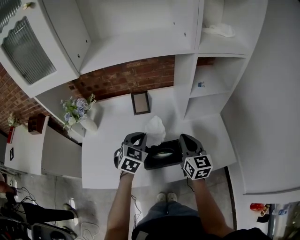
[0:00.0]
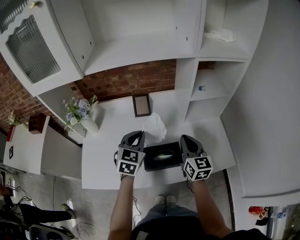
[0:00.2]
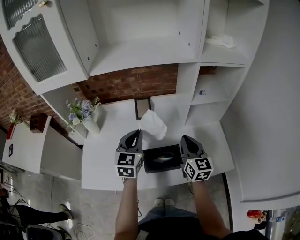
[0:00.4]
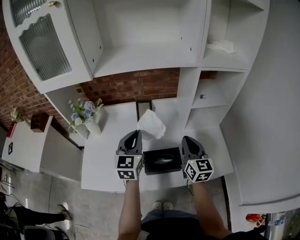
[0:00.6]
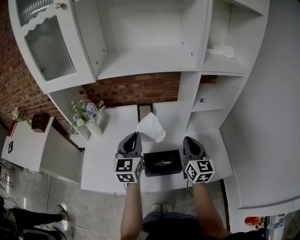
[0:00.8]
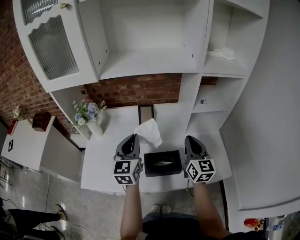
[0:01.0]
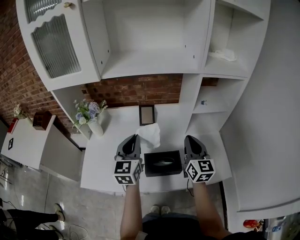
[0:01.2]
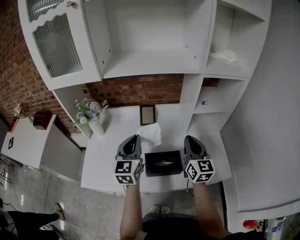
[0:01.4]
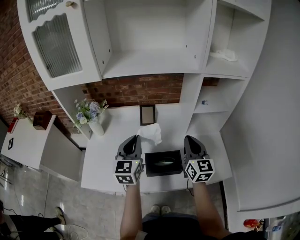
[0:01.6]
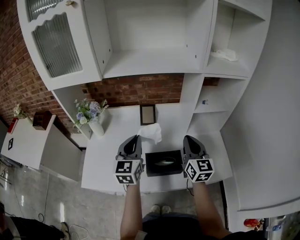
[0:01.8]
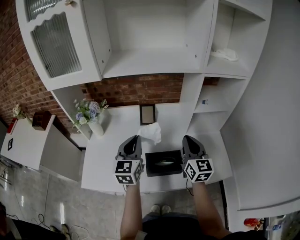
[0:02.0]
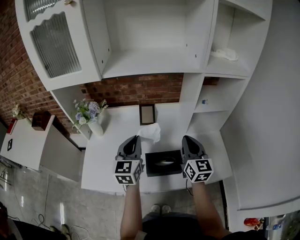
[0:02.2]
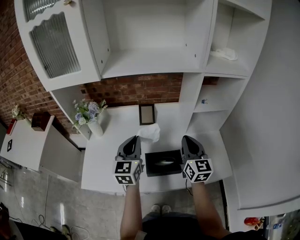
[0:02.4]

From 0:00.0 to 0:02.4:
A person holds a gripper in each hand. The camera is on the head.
From 0:00.0 to 0:01.2: The left gripper shifts some 10 cm upward and to the left, and tilts its fingers roughly 30 degrees upward, while the right gripper travels upward by some 10 cm.
From 0:01.2 to 0:02.4: The grippers stay close to where they were, moving slightly.

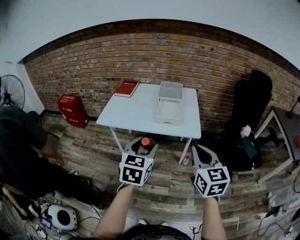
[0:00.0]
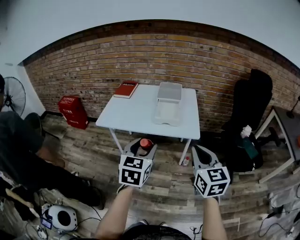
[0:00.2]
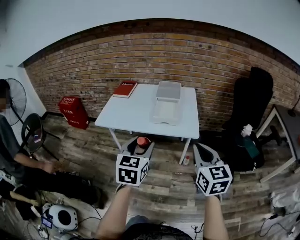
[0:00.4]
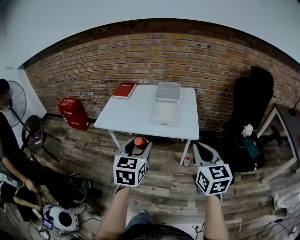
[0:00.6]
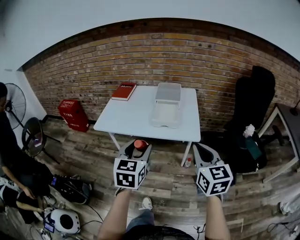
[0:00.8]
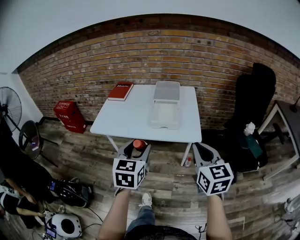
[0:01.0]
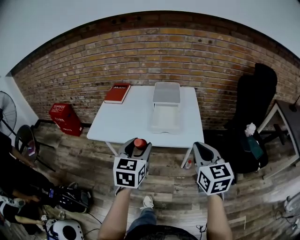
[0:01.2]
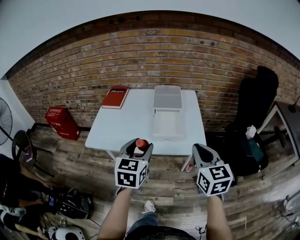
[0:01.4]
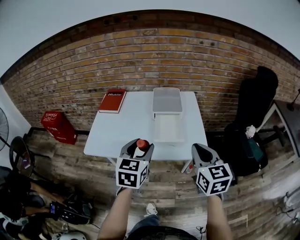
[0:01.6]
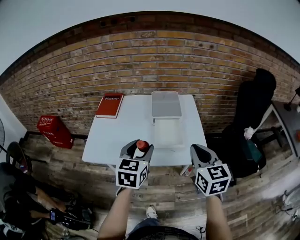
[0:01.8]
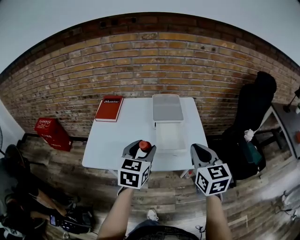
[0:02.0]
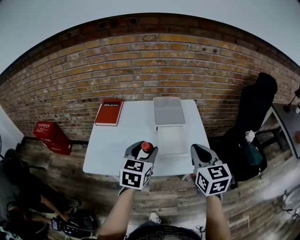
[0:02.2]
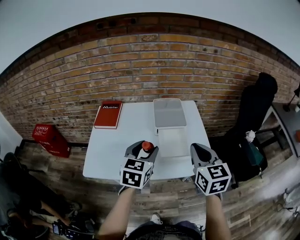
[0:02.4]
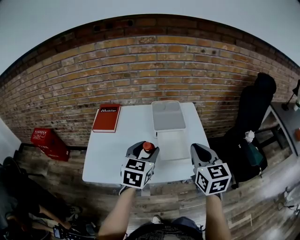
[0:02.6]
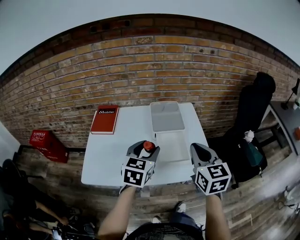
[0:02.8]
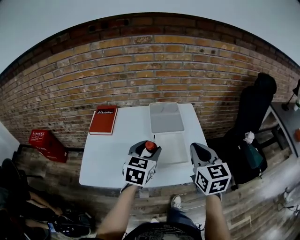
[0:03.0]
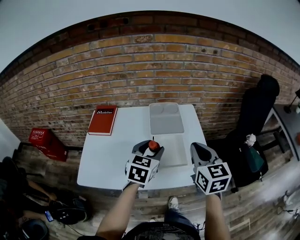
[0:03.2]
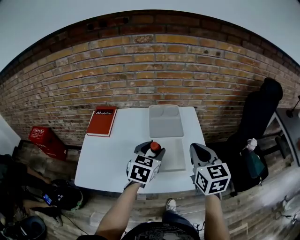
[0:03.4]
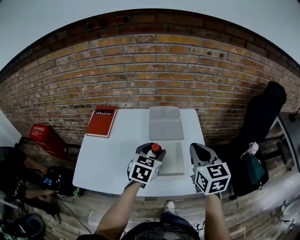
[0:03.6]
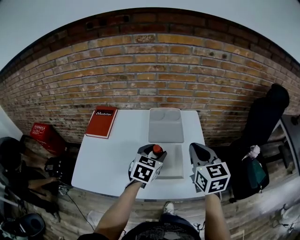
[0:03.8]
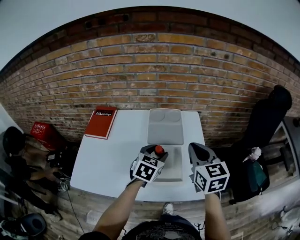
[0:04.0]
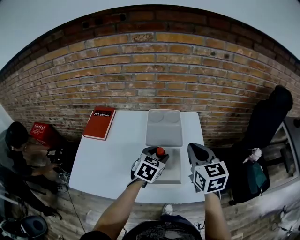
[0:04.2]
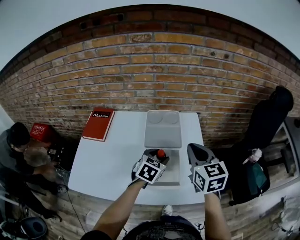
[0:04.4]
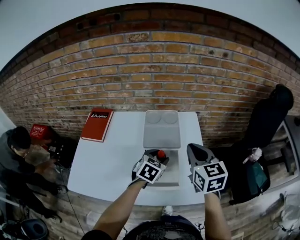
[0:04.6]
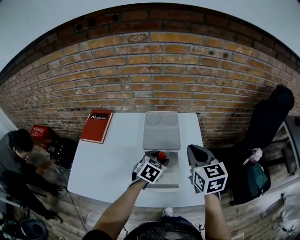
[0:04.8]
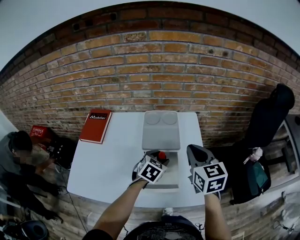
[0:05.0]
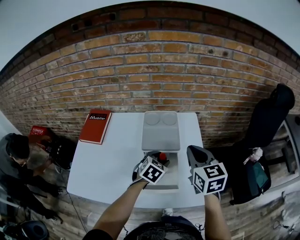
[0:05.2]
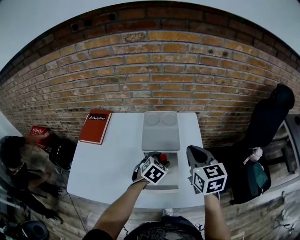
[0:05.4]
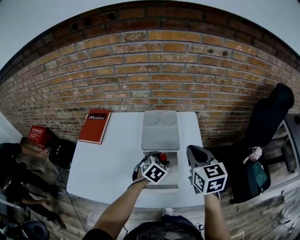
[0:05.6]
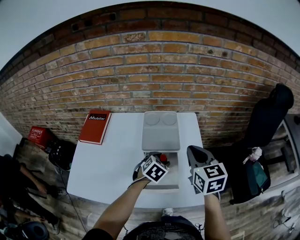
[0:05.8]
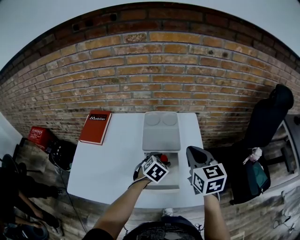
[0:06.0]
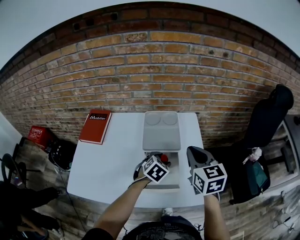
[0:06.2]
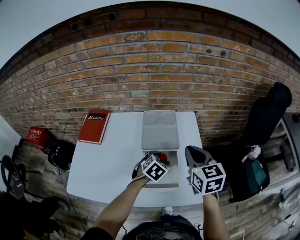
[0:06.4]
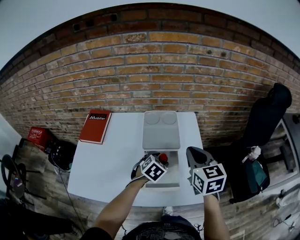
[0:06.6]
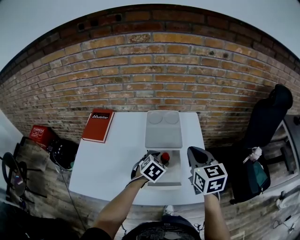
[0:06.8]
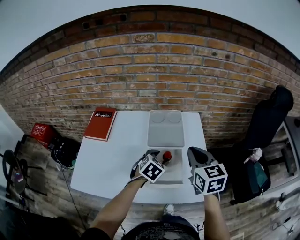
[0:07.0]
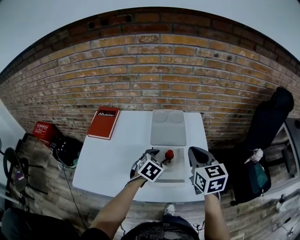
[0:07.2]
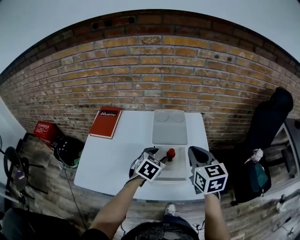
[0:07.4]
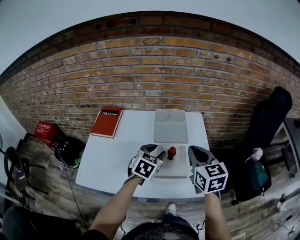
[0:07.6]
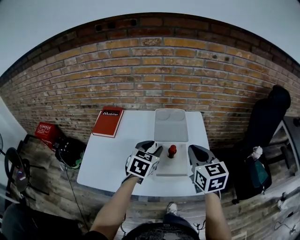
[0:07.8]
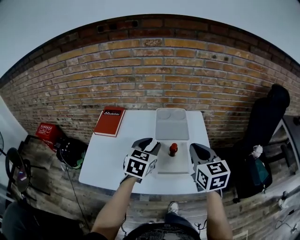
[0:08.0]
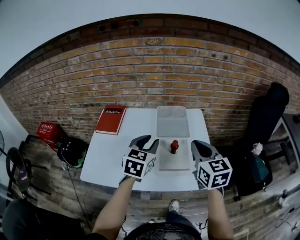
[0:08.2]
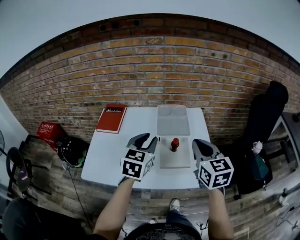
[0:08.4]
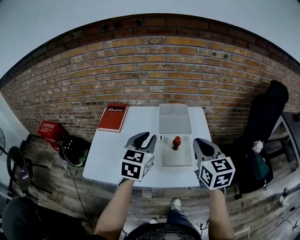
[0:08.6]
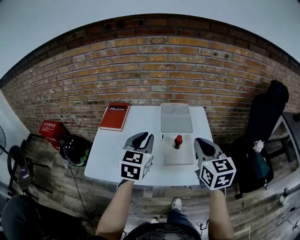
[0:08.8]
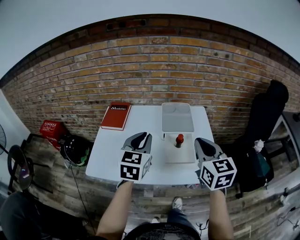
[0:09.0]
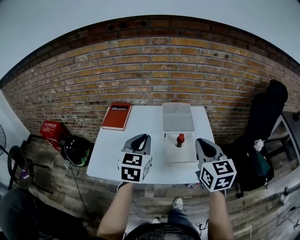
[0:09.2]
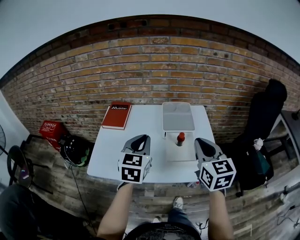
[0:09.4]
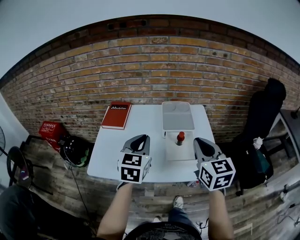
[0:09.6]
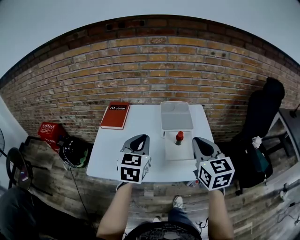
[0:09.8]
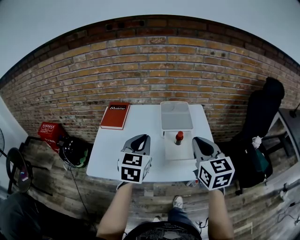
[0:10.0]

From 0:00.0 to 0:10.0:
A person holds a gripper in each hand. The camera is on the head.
From 0:00.0 to 0:01.4: Both grippers move forward, about 15 cm.
From 0:01.4 to 0:02.8: The right gripper goes approximately 15 cm forward and to the left. Meanwhile the left gripper is displaced forward by about 20 cm.
From 0:02.8 to 0:04.2: The right gripper goes some 15 cm forward, while the left gripper travels forward, downward and to the right by about 20 cm.
From 0:04.2 to 0:05.8: The left gripper shifts about 5 cm downward.
From 0:05.8 to 0:07.2: The left gripper changes place by approximately 5 cm.
From 0:07.2 to 0:08.6: The right gripper is displaced backward and upward by approximately 10 cm. Meanwhile the left gripper heads upward and to the left, covering some 20 cm, changes its angle by some 30 degrees, and closes its fingers.
From 0:08.6 to 0:10.0: The left gripper shifts by about 5 cm; the right gripper changes place by approximately 5 cm.

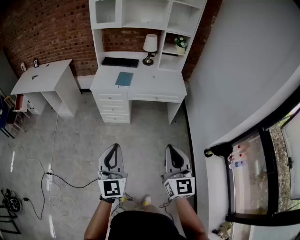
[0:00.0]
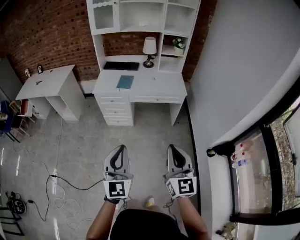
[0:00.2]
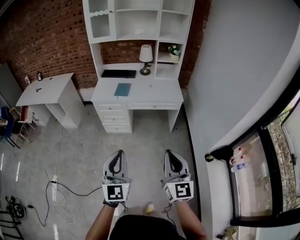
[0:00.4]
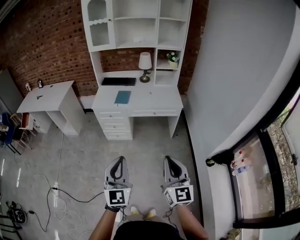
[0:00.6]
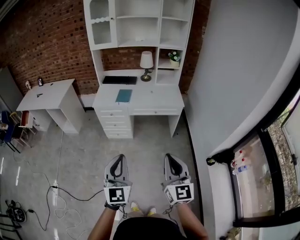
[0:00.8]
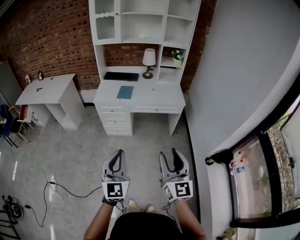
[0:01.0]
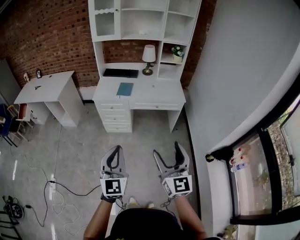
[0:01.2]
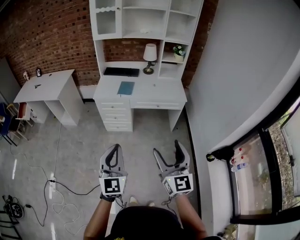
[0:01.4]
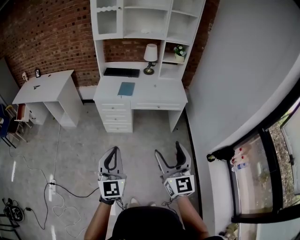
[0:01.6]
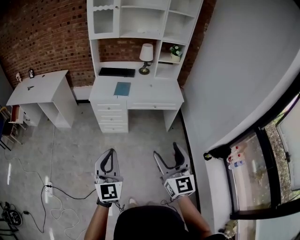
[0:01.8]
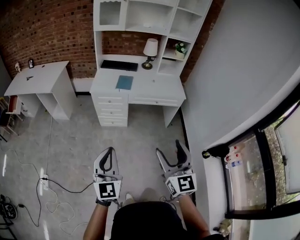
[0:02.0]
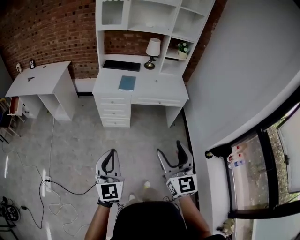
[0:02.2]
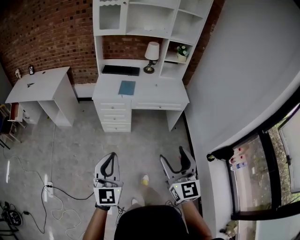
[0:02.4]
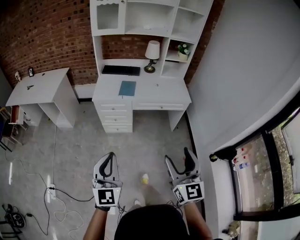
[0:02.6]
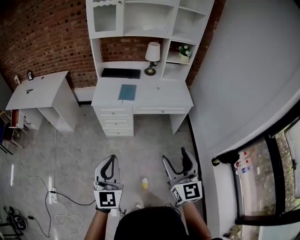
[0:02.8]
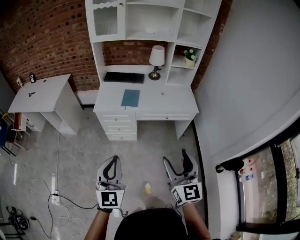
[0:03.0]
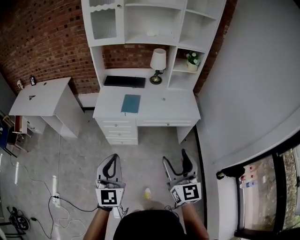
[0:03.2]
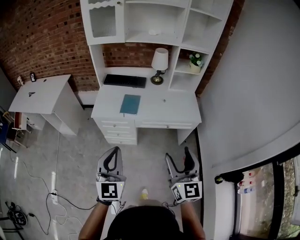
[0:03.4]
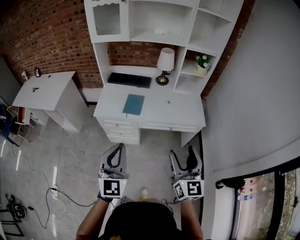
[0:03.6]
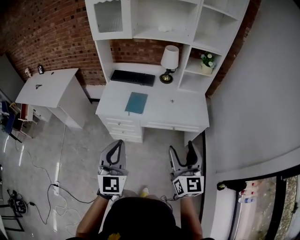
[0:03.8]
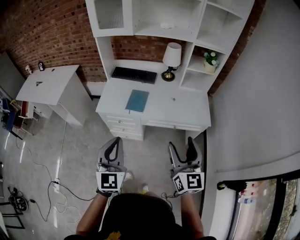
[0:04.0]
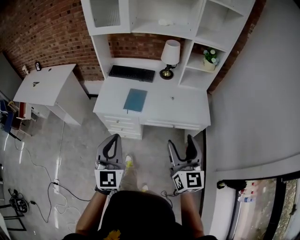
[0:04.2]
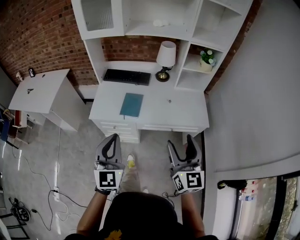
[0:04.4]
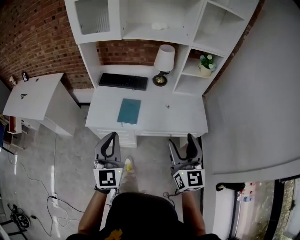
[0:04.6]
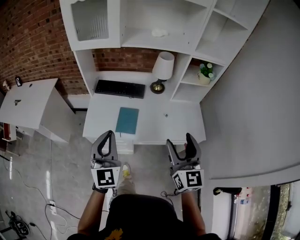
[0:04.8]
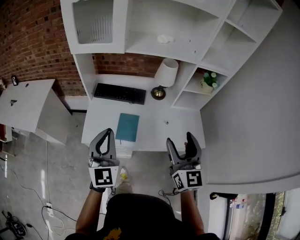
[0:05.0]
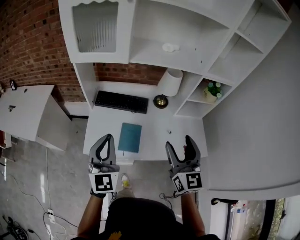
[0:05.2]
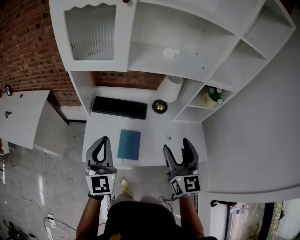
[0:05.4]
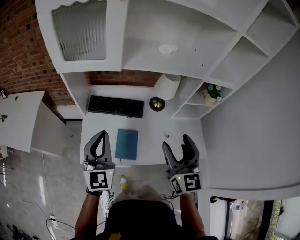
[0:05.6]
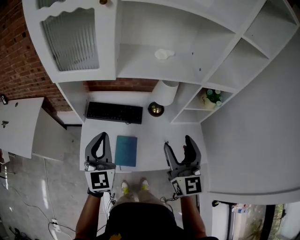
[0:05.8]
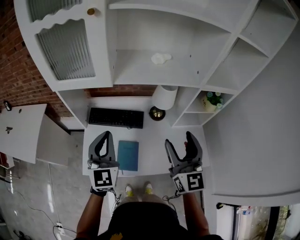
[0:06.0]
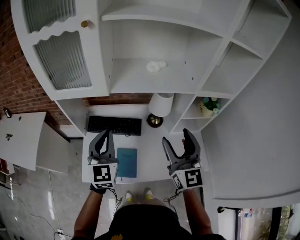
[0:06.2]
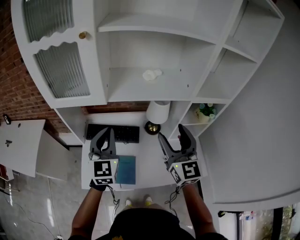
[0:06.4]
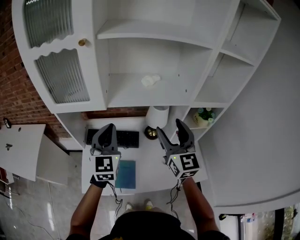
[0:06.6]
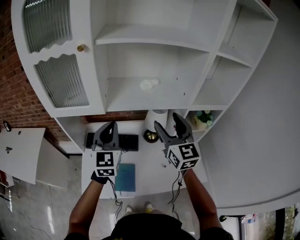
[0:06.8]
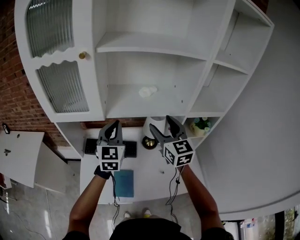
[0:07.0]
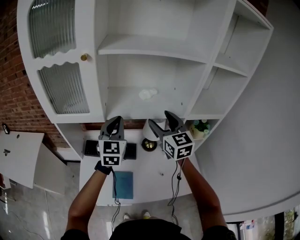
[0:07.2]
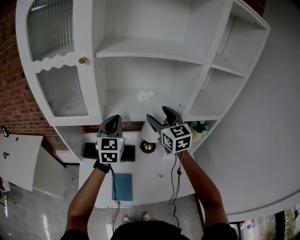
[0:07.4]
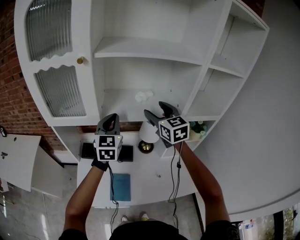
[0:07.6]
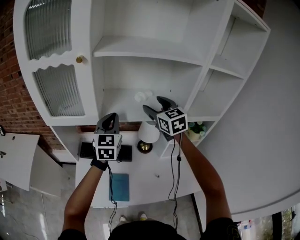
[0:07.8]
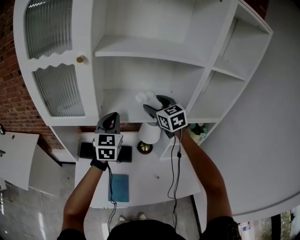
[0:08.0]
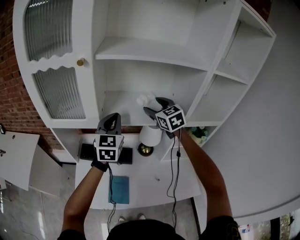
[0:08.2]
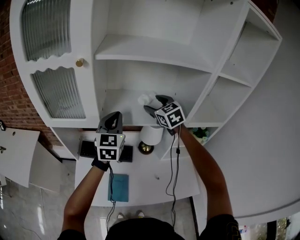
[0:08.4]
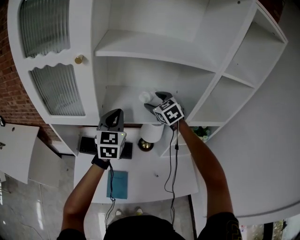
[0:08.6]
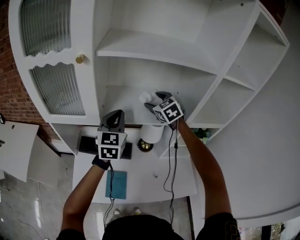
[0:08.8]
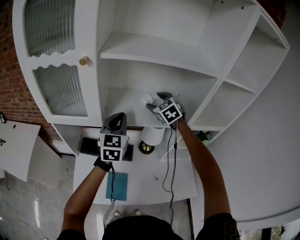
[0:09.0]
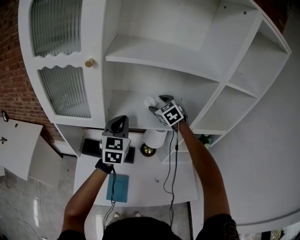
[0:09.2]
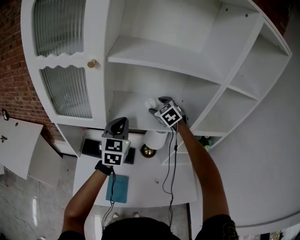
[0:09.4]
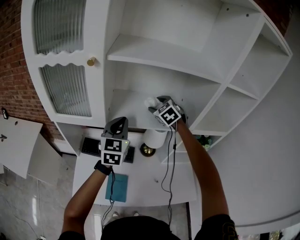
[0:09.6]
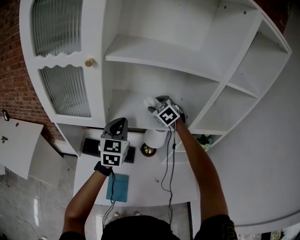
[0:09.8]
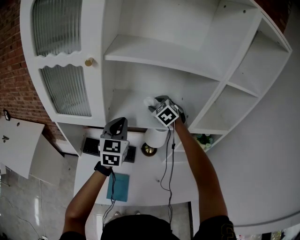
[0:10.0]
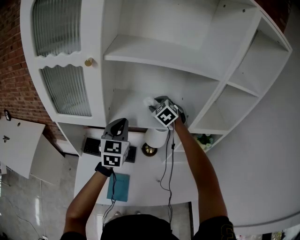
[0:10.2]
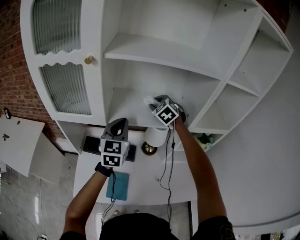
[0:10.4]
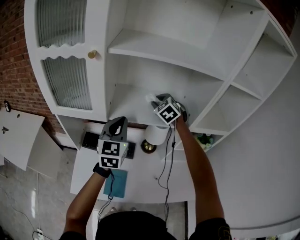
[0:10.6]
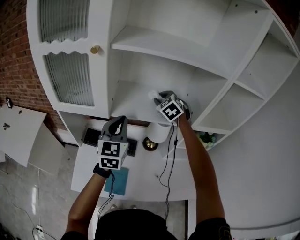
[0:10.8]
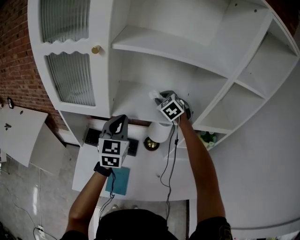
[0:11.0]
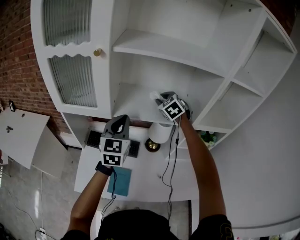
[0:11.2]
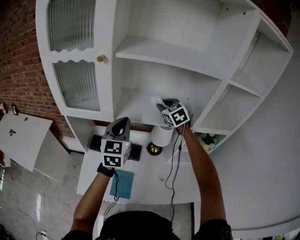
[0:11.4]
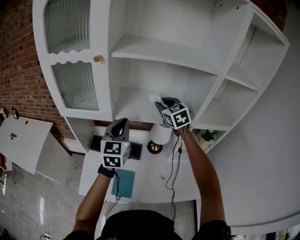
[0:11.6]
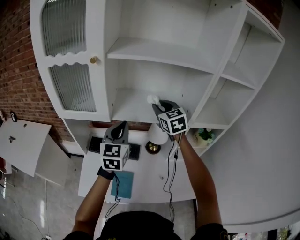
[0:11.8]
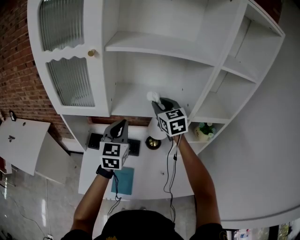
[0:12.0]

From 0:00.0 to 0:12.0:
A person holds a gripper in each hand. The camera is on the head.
From 0:00.0 to 0:01.6: The left gripper goes to the right and returns, about 5 cm each way; the right gripper opens.
From 0:01.6 to 0:03.0: The grippers both shift forward by some 20 cm.
From 0:03.0 to 0:04.4: Both grippers move forward, about 30 cm.
From 0:04.4 to 0:06.0: Both grippers move forward, about 40 cm.
From 0:06.0 to 0:07.6: The left gripper travels forward, upward and to the right by some 20 cm. Meanwhile the right gripper goes roughly 25 cm forward.
From 0:07.6 to 0:09.0: The right gripper shifts approximately 15 cm forward, and swivels about 30 degrees.
From 0:09.0 to 0:10.4: The right gripper closes its fingers.
From 0:10.4 to 0:12.0: The right gripper shifts some 15 cm backward and upward, and rotates about 40 degrees. Meanwhile the left gripper shifts some 5 cm backward.
